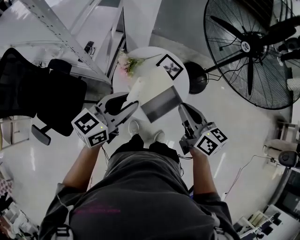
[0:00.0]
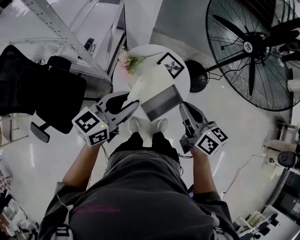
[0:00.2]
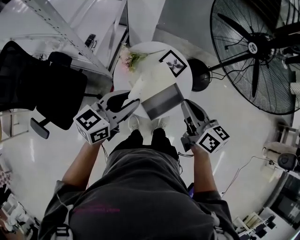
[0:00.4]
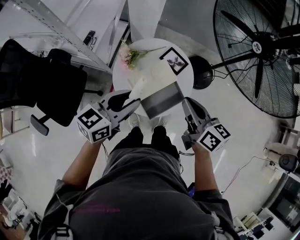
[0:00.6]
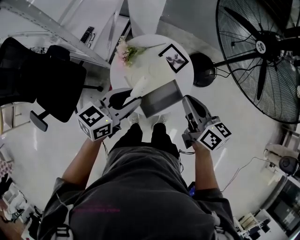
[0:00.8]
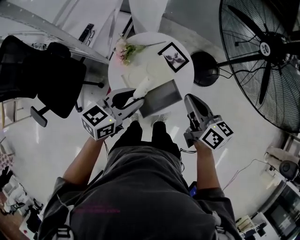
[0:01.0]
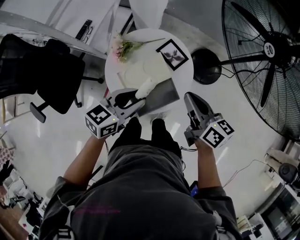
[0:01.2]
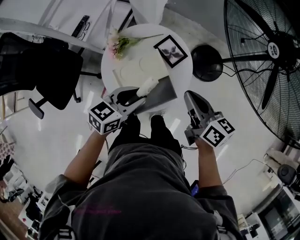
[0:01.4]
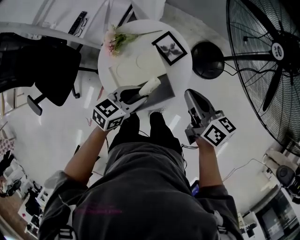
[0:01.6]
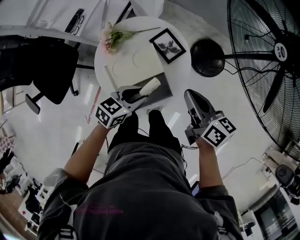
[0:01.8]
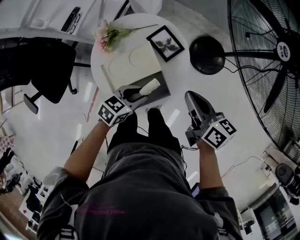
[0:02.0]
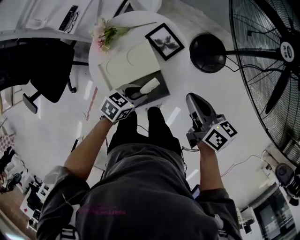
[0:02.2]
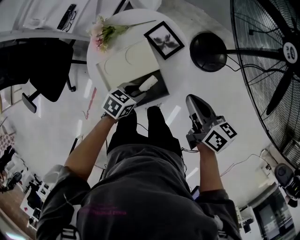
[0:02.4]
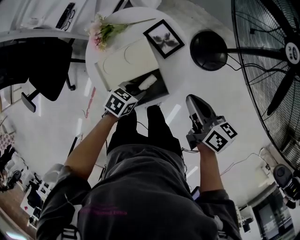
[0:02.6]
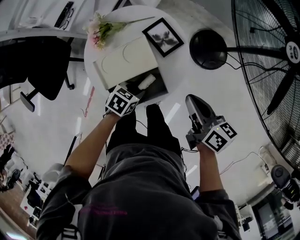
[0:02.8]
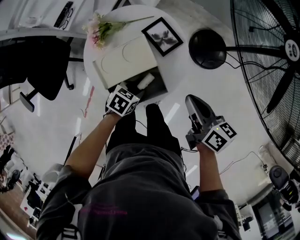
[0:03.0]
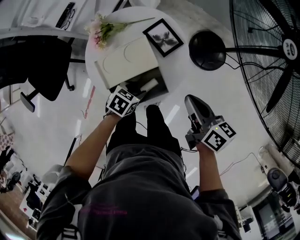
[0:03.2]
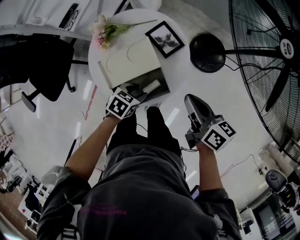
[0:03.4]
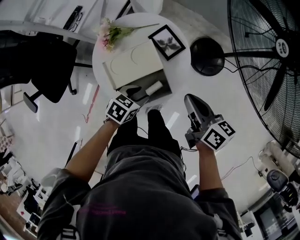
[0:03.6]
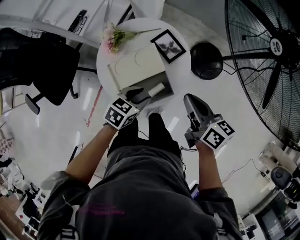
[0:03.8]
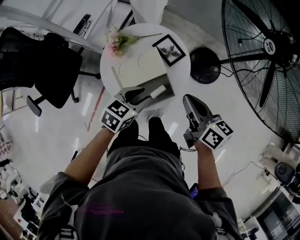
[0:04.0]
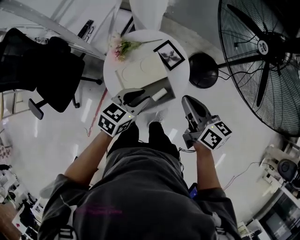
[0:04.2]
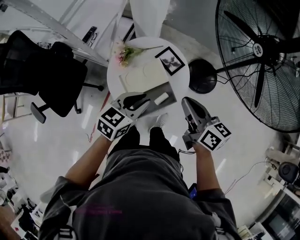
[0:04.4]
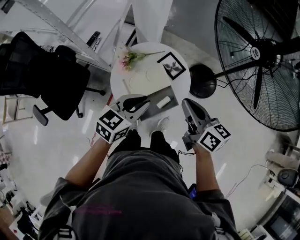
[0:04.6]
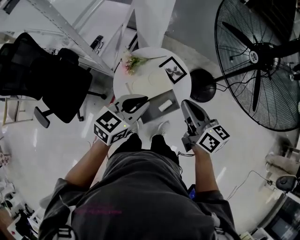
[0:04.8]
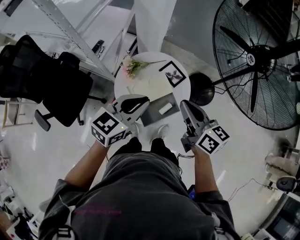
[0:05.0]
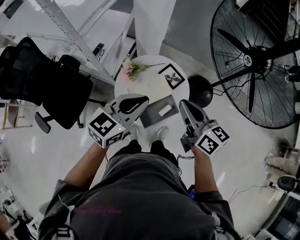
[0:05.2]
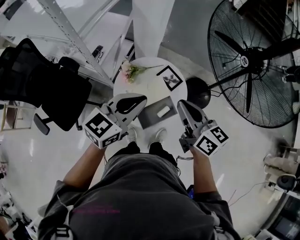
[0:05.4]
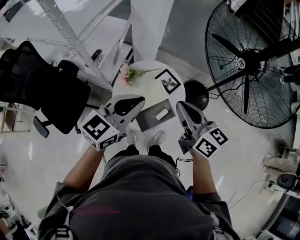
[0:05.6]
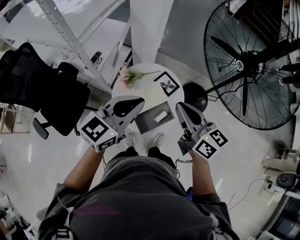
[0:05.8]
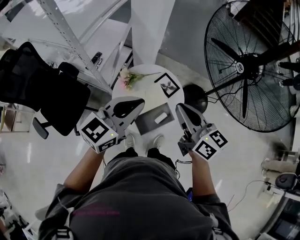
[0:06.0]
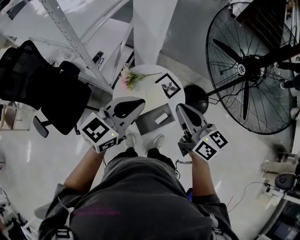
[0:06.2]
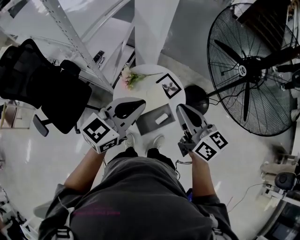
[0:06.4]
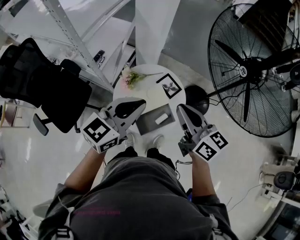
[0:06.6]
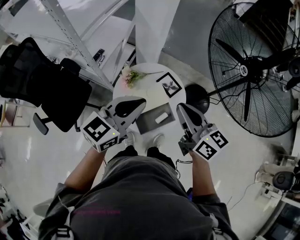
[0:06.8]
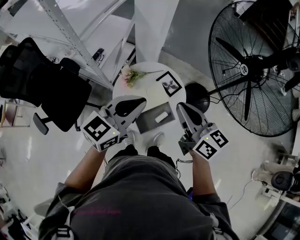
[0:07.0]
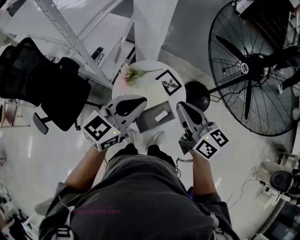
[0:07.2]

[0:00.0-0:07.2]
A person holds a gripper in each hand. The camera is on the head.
0:00.0 to 0:01.4: The right gripper shifts roughly 20 cm downward, forward and to the right; the left gripper travels downward and to the right by approximately 20 cm.
0:01.4 to 0:02.8: The left gripper shifts roughly 20 cm downward, and changes its angle by some 30 degrees; the right gripper moves downward and to the right, about 10 cm.
0:02.8 to 0:04.4: The left gripper moves upward, about 25 cm, and rotates some 30 degrees. Meanwhile the right gripper is displaced upward and to the left by some 15 cm.
0:04.4 to 0:05.8: The right gripper travels upward and to the left by about 15 cm, while the left gripper moves upward, approximately 20 cm, and changes its angle by about 20 degrees.
0:05.8 to 0:07.2: There are only small adjustments of the grippers.

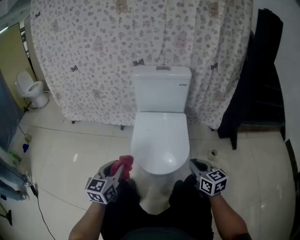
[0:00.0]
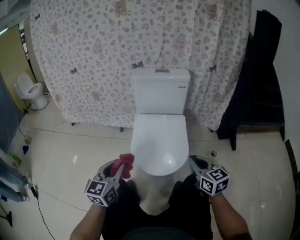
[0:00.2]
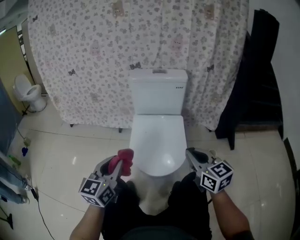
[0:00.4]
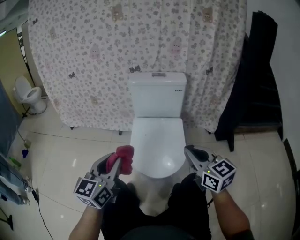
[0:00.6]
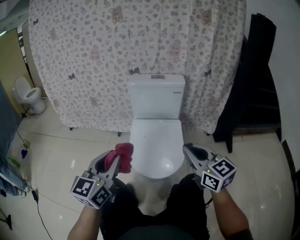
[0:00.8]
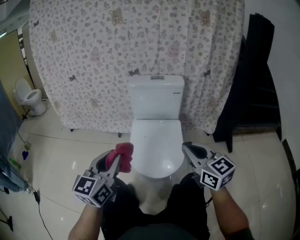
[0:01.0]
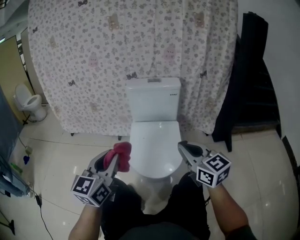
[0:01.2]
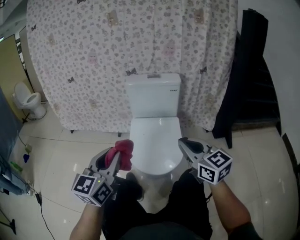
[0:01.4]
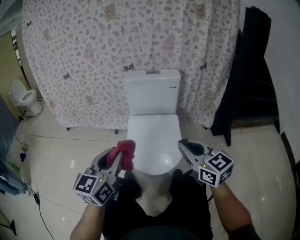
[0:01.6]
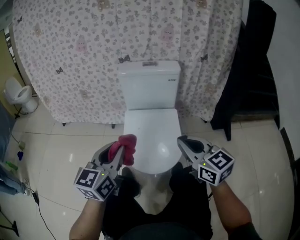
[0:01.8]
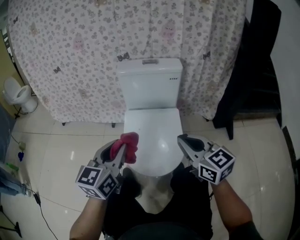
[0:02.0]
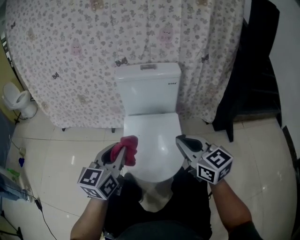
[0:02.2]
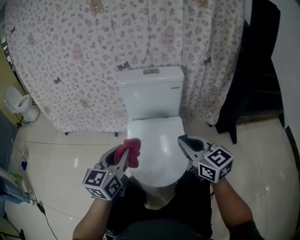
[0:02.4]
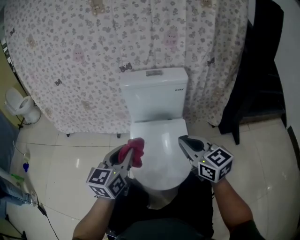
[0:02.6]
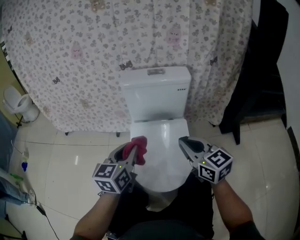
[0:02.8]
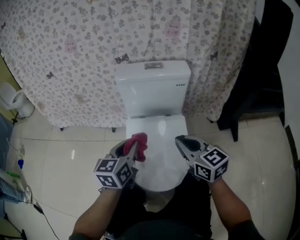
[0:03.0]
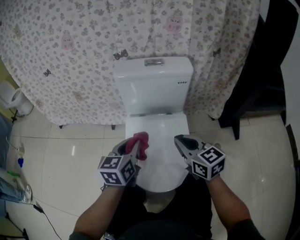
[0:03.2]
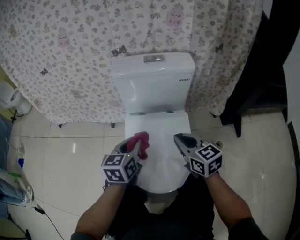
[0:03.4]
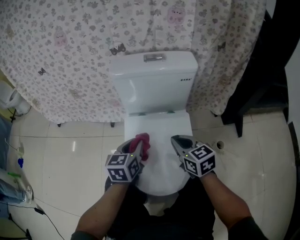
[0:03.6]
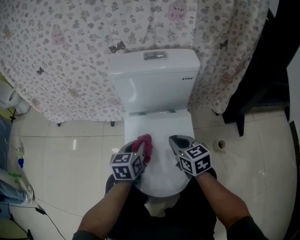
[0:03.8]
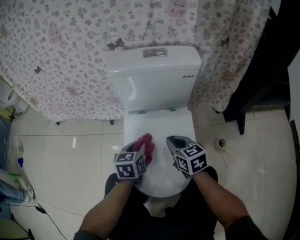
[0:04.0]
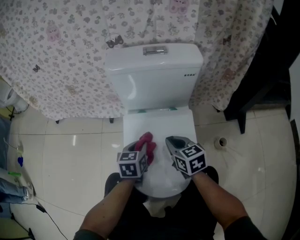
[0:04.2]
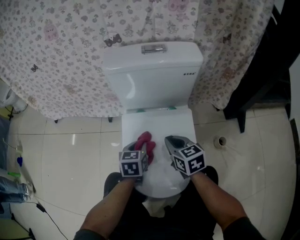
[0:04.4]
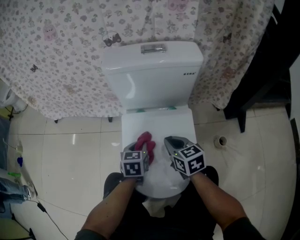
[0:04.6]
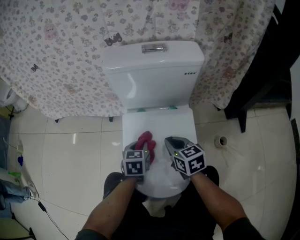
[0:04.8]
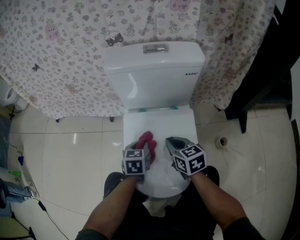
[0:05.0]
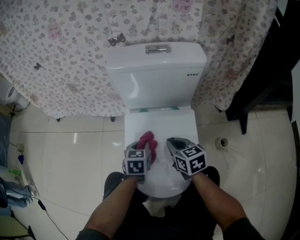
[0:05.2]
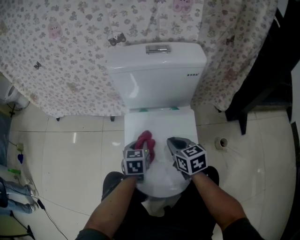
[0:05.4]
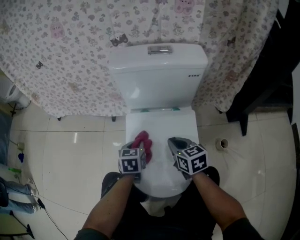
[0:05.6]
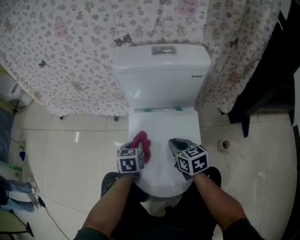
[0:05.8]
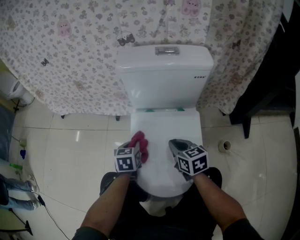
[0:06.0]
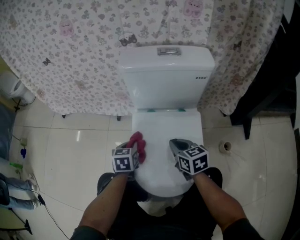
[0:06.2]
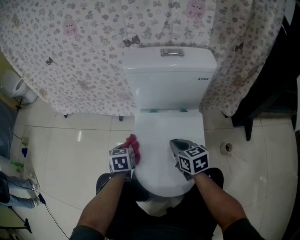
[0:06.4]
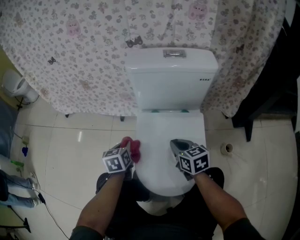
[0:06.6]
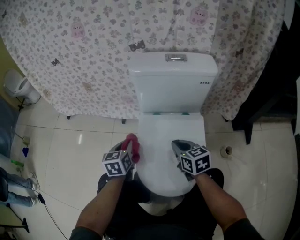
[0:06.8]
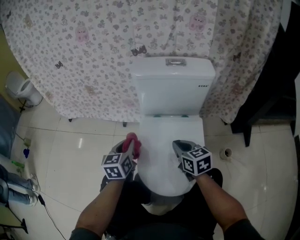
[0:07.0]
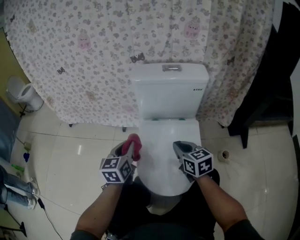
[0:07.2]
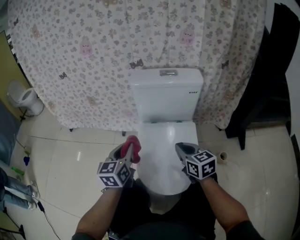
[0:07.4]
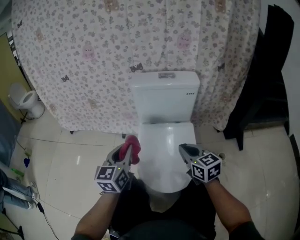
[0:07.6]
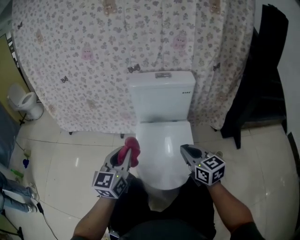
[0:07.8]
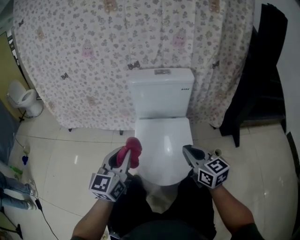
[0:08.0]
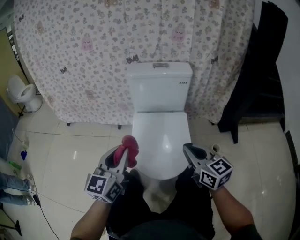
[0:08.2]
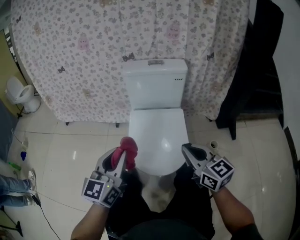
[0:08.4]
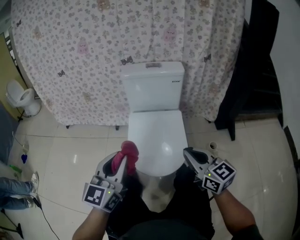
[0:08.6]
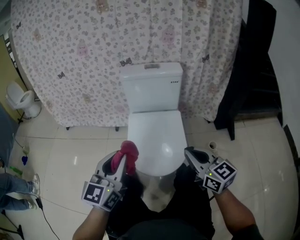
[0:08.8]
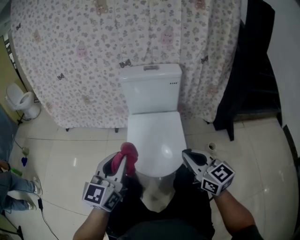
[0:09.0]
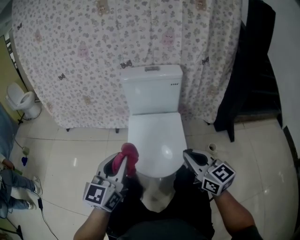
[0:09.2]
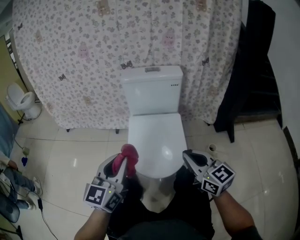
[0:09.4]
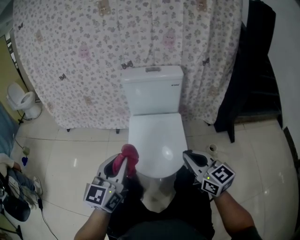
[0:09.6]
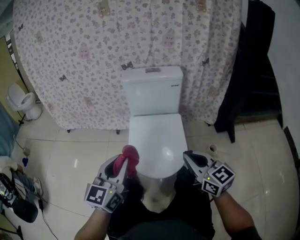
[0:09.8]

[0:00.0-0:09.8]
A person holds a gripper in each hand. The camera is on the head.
0:00.0 to 0:01.4: The two grippers go approximately 20 cm upward.
0:01.4 to 0:02.8: The left gripper shifts approximately 20 cm forward and downward. The right gripper moves forward, some 15 cm.
0:02.8 to 0:04.2: The two grippers go about 25 cm downward and forward. The left gripper turns by roughly 20 degrees. The right gripper rotates about 20 degrees.
0:04.2 to 0:05.6: The grippers make only small movements.
0:05.6 to 0:07.0: The left gripper goes roughly 15 cm upward and to the left, while the right gripper moves approximately 5 cm.
0:07.0 to 0:08.4: The two grippers go approximately 25 cm backward and upward. The right gripper swivels about 20 degrees, while the left gripper changes its angle by some 30 degrees.
0:08.4 to 0:09.8: The grippers move only a little.

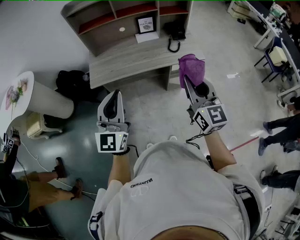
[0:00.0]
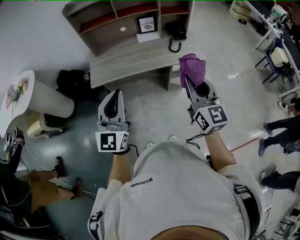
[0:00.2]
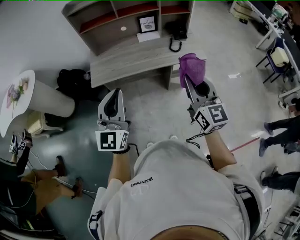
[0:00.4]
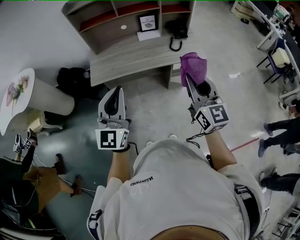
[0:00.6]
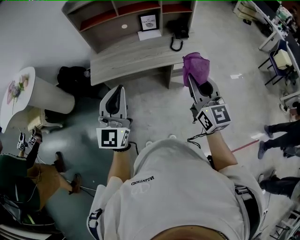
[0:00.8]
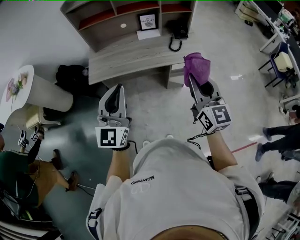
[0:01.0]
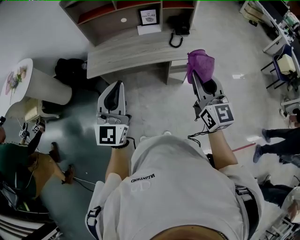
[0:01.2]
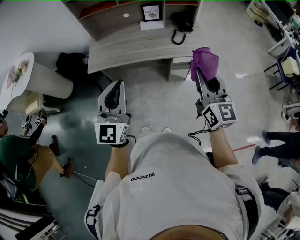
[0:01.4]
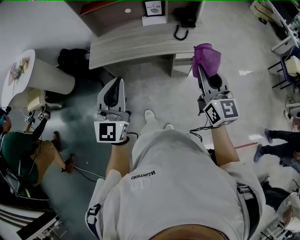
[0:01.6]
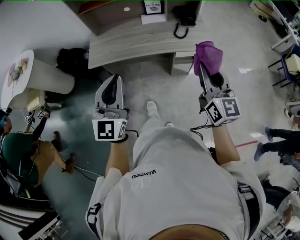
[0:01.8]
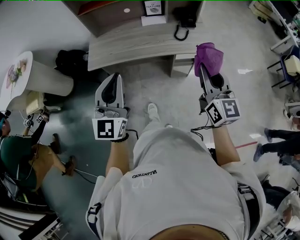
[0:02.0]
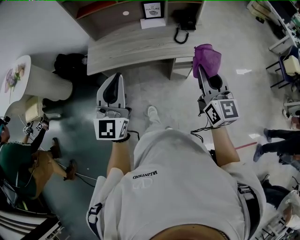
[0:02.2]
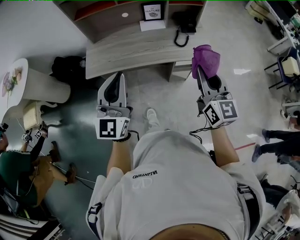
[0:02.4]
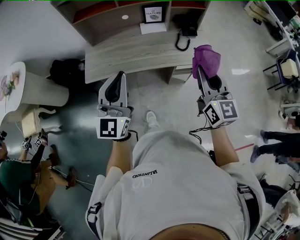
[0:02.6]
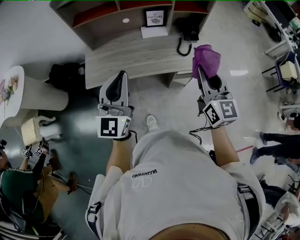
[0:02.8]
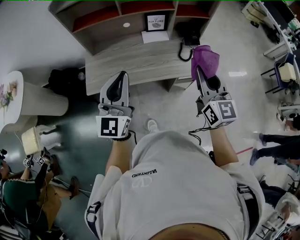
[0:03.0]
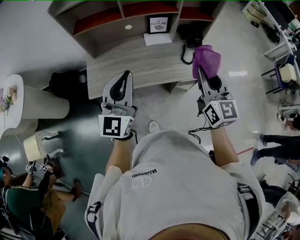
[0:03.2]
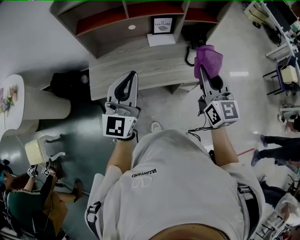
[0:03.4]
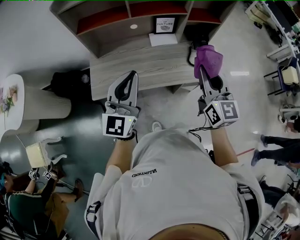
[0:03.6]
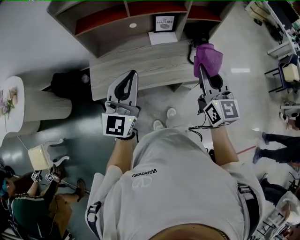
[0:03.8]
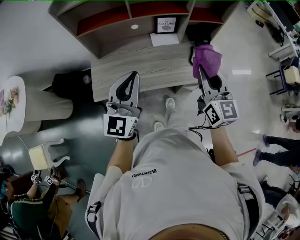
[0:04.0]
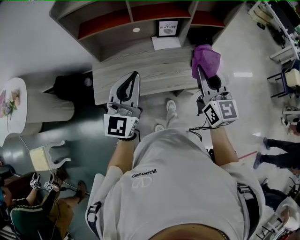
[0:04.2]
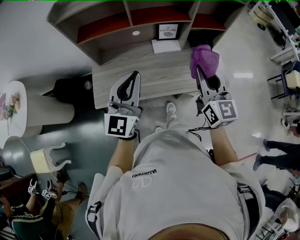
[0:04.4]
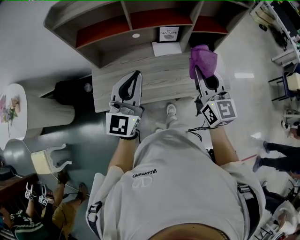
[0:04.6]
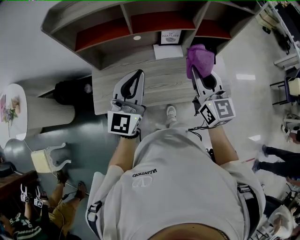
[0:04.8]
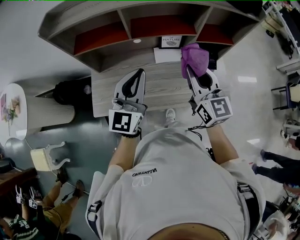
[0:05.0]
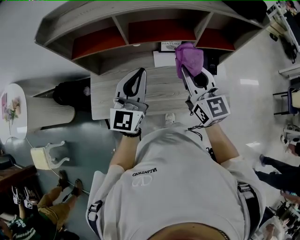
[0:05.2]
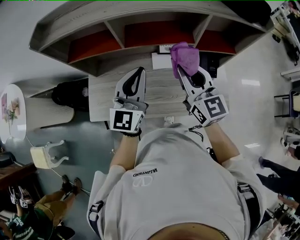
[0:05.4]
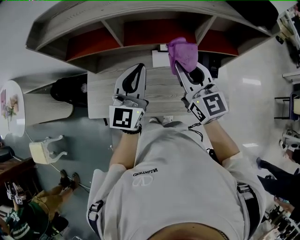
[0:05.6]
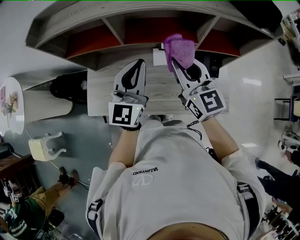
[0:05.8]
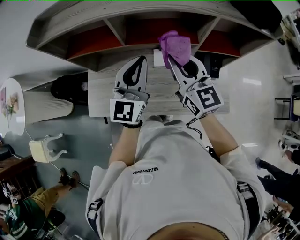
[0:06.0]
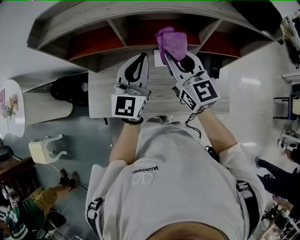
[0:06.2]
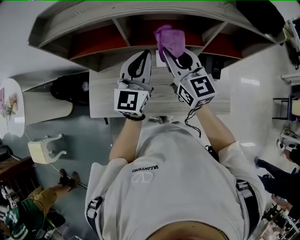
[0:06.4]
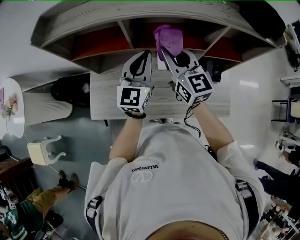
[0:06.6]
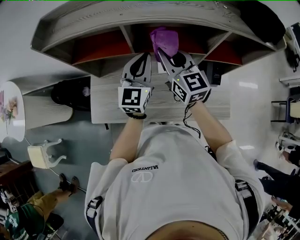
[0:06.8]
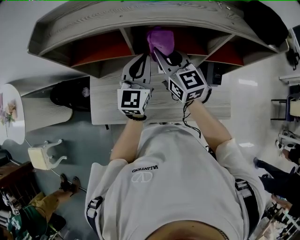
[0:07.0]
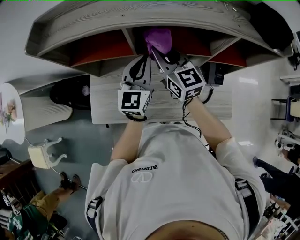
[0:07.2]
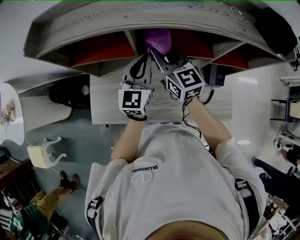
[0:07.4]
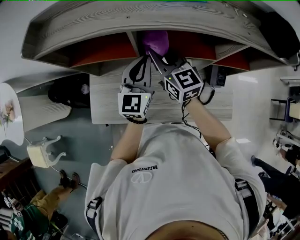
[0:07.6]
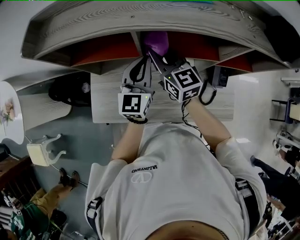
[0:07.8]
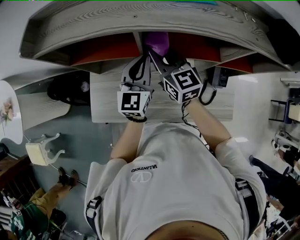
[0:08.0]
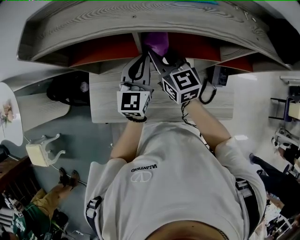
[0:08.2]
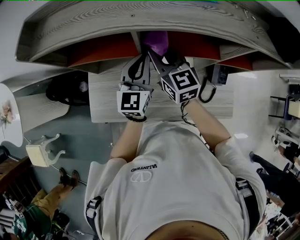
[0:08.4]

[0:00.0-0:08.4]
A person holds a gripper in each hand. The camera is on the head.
0:00.0 to 0:01.4: The two grippers go roughly 10 cm to the right.
0:01.4 to 0:02.8: The right gripper is displaced forward and to the left by some 20 cm, while the left gripper shifts roughly 20 cm forward.
0:02.8 to 0:04.2: Both grippers travel together forward and to the left, about 15 cm.
0:04.2 to 0:05.6: The right gripper shifts about 25 cm forward. Meanwhile the left gripper goes about 25 cm forward and to the right.
0:05.6 to 0:07.0: The left gripper travels forward by some 10 cm, while the right gripper travels forward and to the left by some 15 cm.
0:07.0 to 0:08.4: The right gripper heads downward and to the left, covering roughly 10 cm; the left gripper shifts about 5 cm downward.
